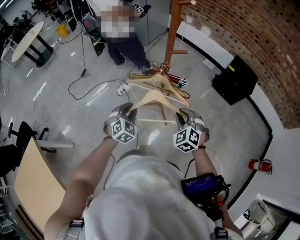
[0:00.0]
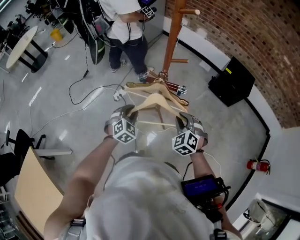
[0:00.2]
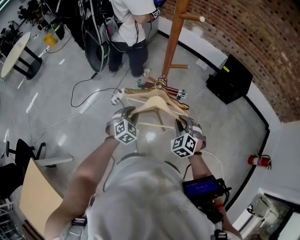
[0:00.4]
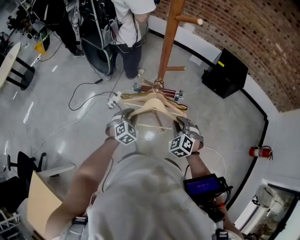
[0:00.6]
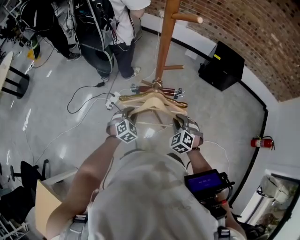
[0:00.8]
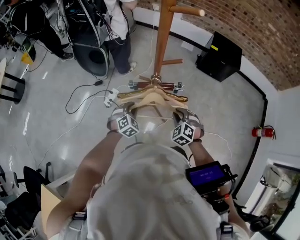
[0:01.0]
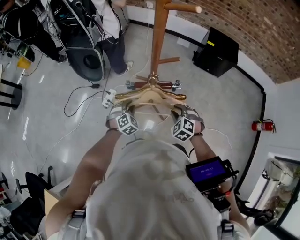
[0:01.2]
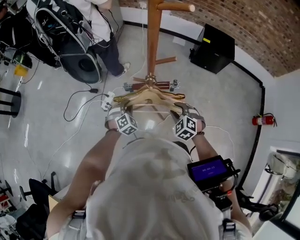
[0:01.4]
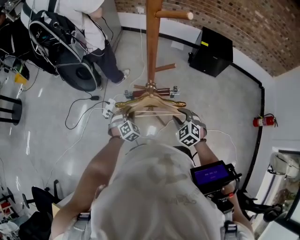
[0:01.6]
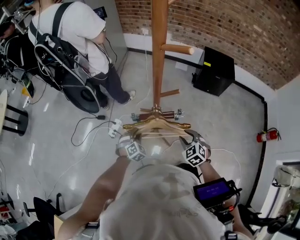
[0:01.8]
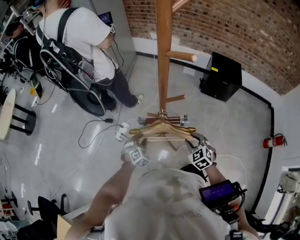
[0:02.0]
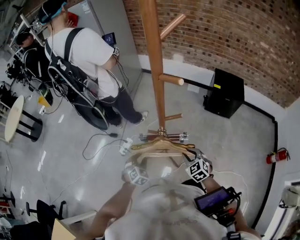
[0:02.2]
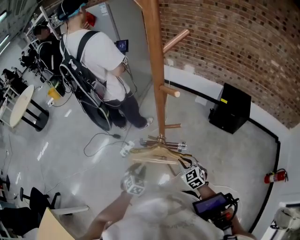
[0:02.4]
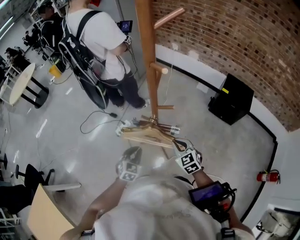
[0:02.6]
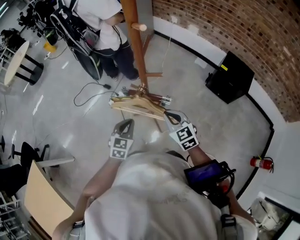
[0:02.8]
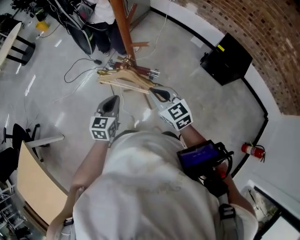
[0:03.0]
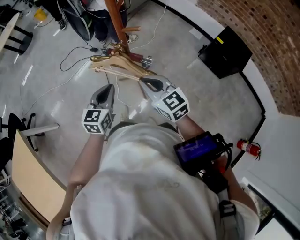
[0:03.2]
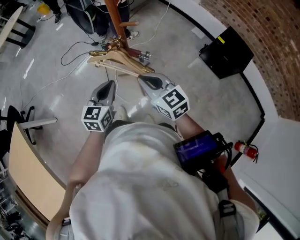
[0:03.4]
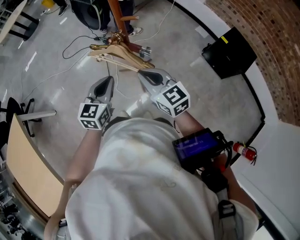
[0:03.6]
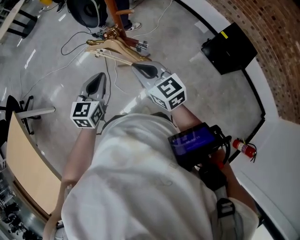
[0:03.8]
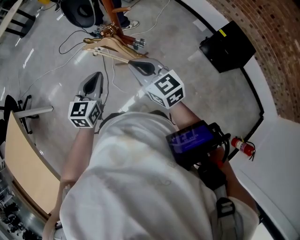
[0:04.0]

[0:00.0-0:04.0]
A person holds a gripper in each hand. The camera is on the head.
0.0 to 1.4 s: The right gripper shifts some 15 cm forward and downward. Meanwhile the left gripper travels forward and downward by some 20 cm, and changes its angle by roughly 30 degrees.
1.4 to 2.6 s: The right gripper moves upward, about 5 cm, turns by about 30 degrees, and closes its fingers; the left gripper travels upward and backward by roughly 15 cm, and turns by about 40 degrees.
2.6 to 4.0 s: The left gripper heads backward and upward, covering about 15 cm, and rotates approximately 30 degrees, while the right gripper shifts about 10 cm upward and backward, and turns by approximately 30 degrees.

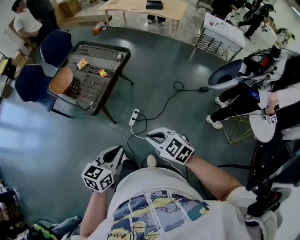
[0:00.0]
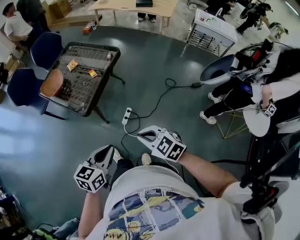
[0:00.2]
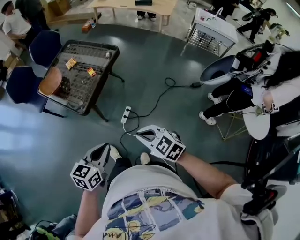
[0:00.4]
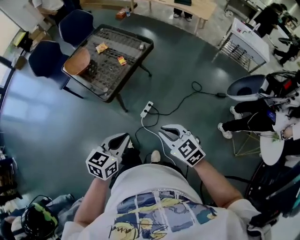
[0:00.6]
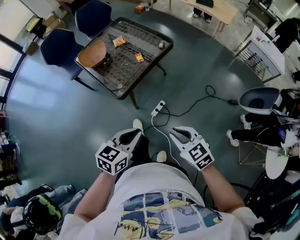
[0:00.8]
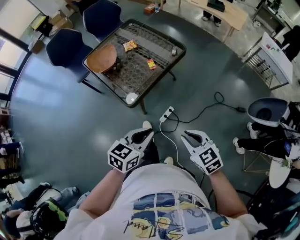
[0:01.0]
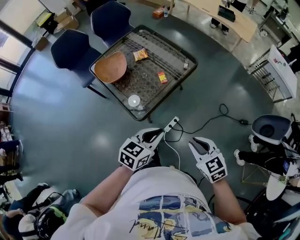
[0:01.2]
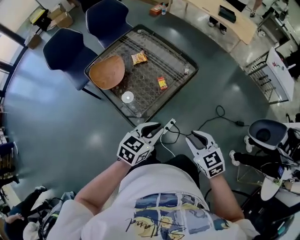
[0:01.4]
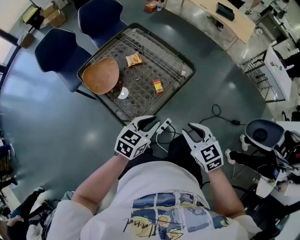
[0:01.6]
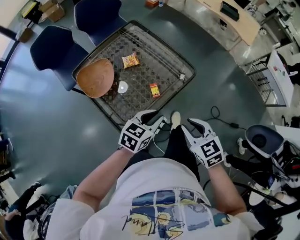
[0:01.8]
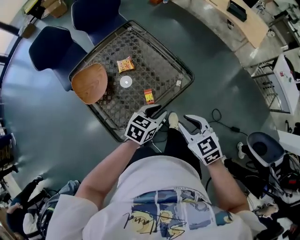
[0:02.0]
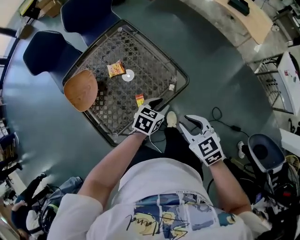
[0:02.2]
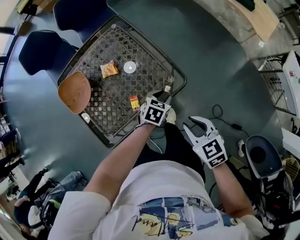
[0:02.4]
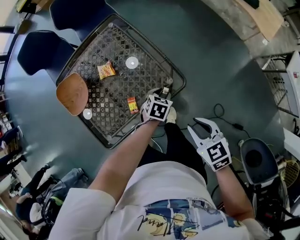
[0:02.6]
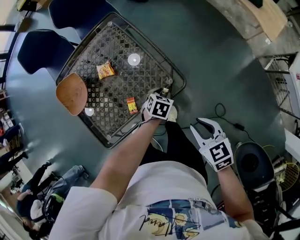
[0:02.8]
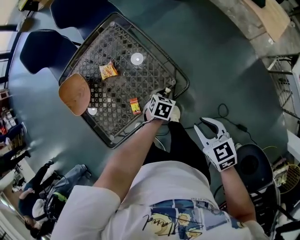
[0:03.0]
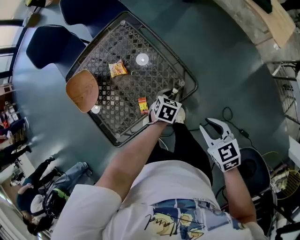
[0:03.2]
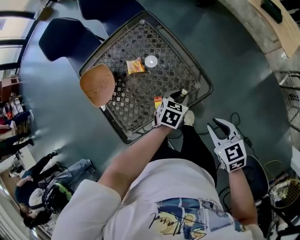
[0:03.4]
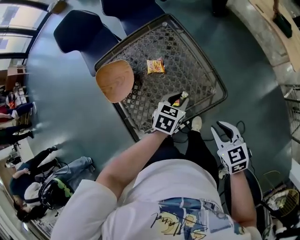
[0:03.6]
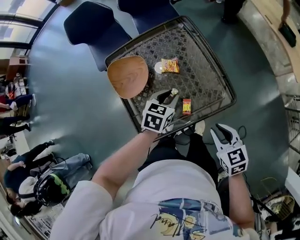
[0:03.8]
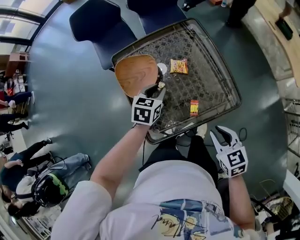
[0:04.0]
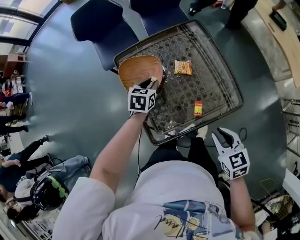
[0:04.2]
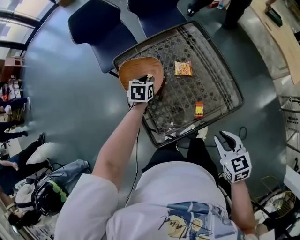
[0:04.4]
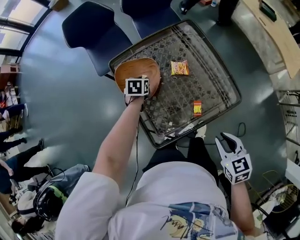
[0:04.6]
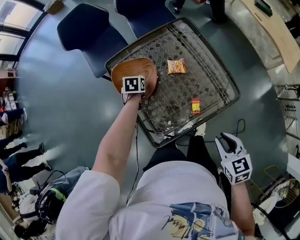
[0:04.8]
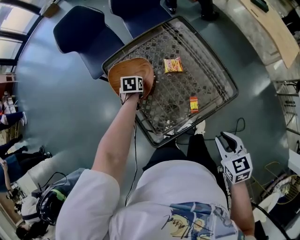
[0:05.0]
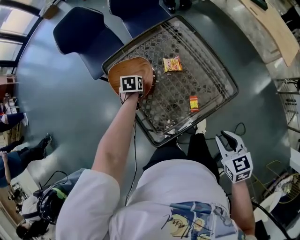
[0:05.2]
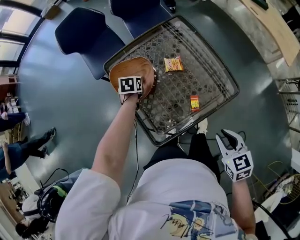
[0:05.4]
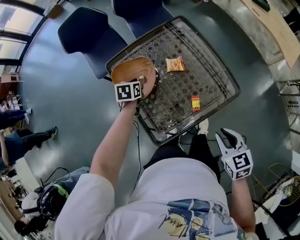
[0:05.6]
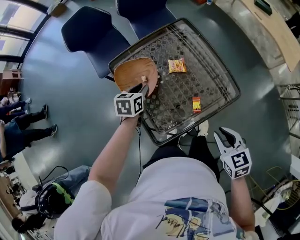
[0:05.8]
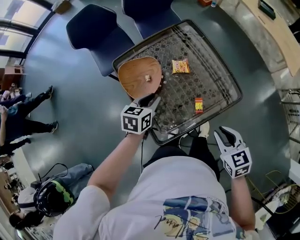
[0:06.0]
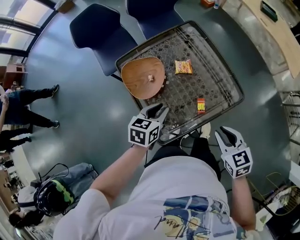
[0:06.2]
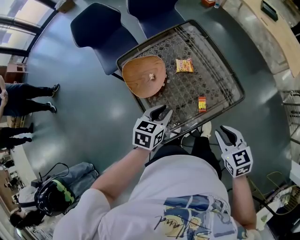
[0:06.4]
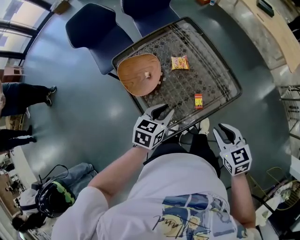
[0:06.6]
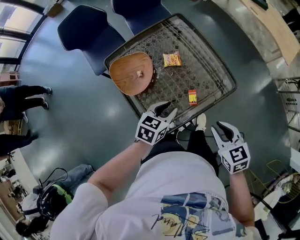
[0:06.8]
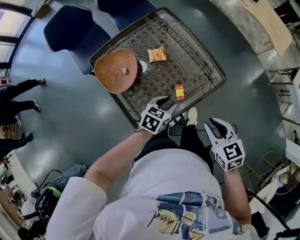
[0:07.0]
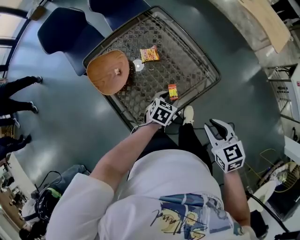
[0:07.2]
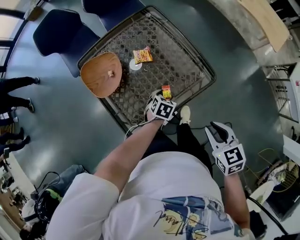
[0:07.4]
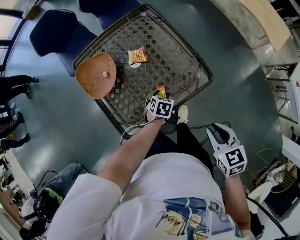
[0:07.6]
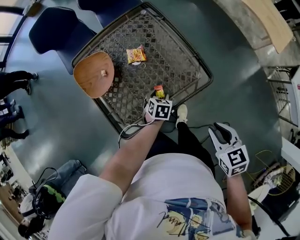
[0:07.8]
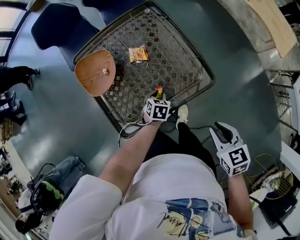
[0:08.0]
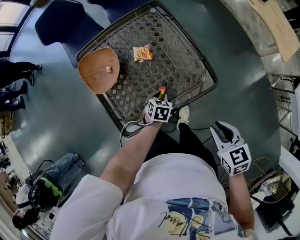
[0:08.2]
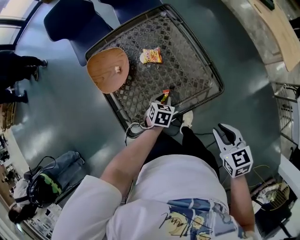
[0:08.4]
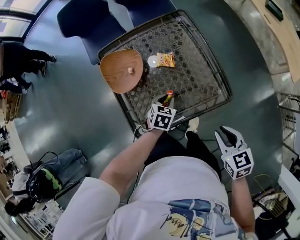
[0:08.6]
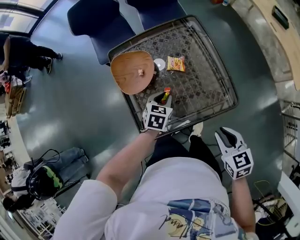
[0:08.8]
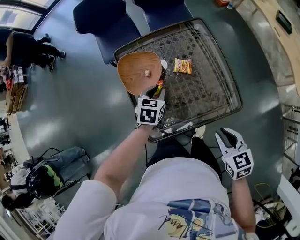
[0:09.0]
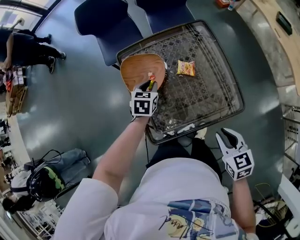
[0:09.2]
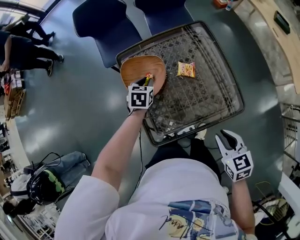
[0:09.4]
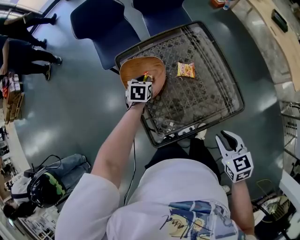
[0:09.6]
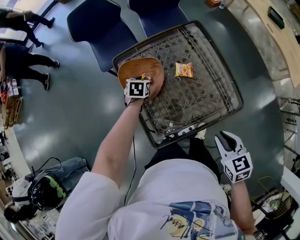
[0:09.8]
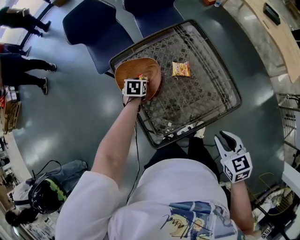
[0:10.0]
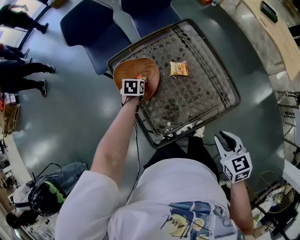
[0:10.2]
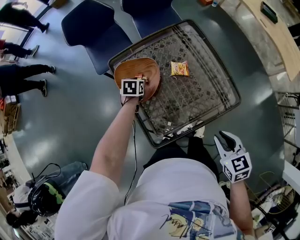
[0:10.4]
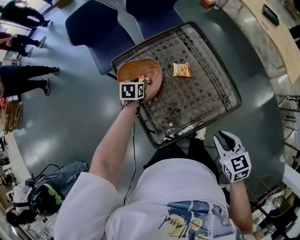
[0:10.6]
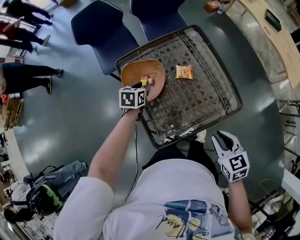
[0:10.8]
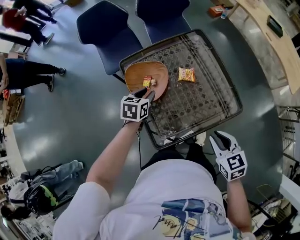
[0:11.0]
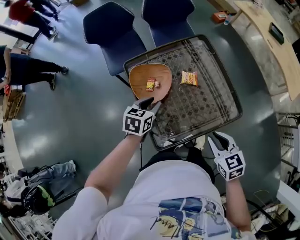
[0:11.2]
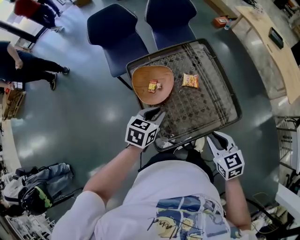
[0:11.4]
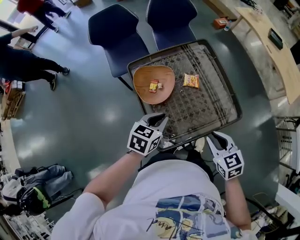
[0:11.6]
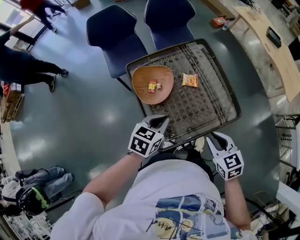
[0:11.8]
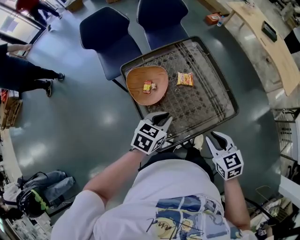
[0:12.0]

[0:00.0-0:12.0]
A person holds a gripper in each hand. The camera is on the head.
0.0 to 1.6 s: Both grippers travel together forward, roughly 40 cm.
1.6 to 3.0 s: The right gripper goes roughly 30 cm forward and to the right. The left gripper heads forward, downward and to the right, covering approximately 40 cm, and points its fingers about 30 degrees further downward.
3.0 to 4.4 s: The left gripper is displaced to the left by about 40 cm, and swivels roughly 30 degrees. The right gripper travels to the left by about 25 cm.
4.4 to 6.0 s: The left gripper is displaced backward and upward by about 15 cm.
6.0 to 7.6 s: The left gripper shifts roughly 30 cm to the right and downward, changes its angle by approximately 20 degrees, and opens its fingers; the right gripper moves to the right, about 15 cm.
7.6 to 9.0 s: The right gripper goes about 15 cm to the left and forward; the left gripper moves to the left, upward and forward, roughly 25 cm, rotates approximately 20 degrees, and closes.
9.0 to 10.4 s: The left gripper goes approximately 15 cm forward, to the left and downward.
10.4 to 12.0 s: The right gripper shifts some 5 cm to the left. Meanwhile the left gripper heads upward, backward and to the right, covering approximately 30 cm, and swivels about 30 degrees.

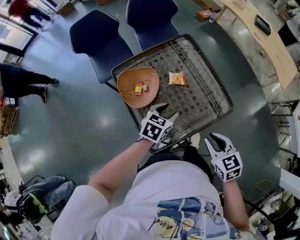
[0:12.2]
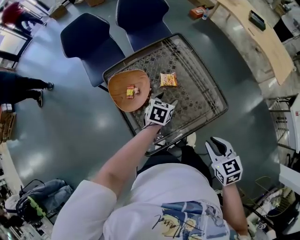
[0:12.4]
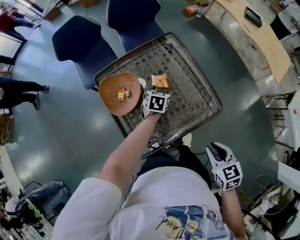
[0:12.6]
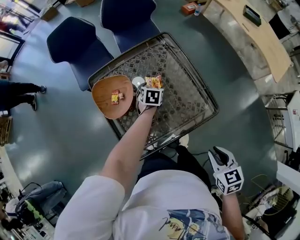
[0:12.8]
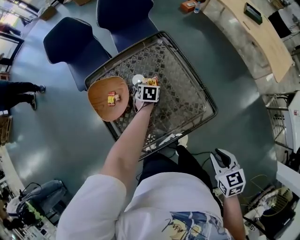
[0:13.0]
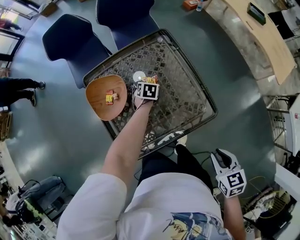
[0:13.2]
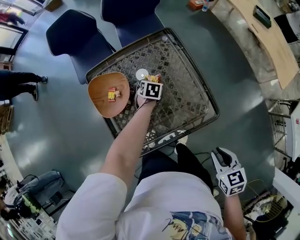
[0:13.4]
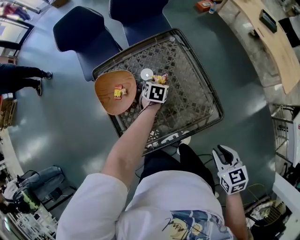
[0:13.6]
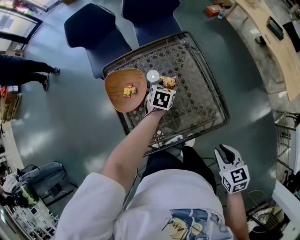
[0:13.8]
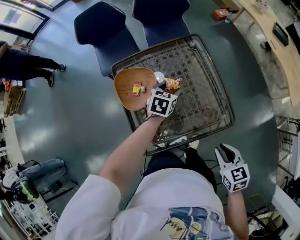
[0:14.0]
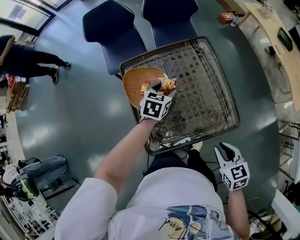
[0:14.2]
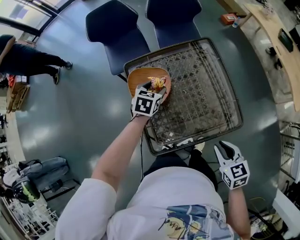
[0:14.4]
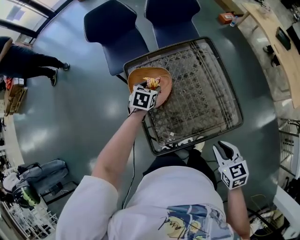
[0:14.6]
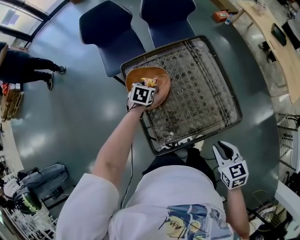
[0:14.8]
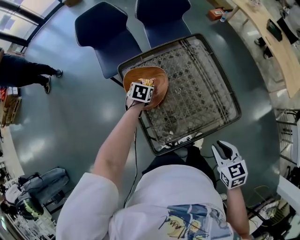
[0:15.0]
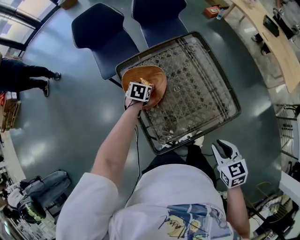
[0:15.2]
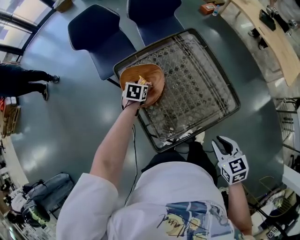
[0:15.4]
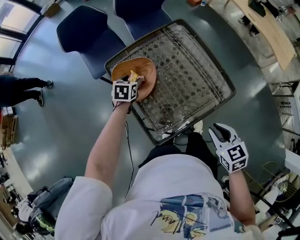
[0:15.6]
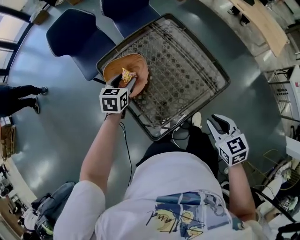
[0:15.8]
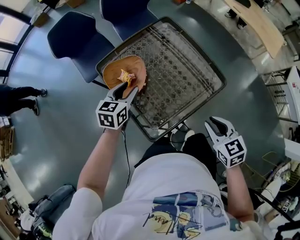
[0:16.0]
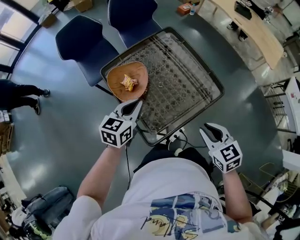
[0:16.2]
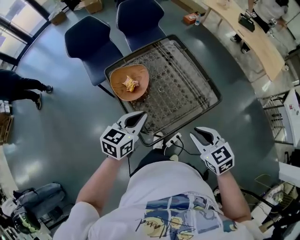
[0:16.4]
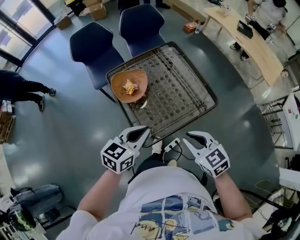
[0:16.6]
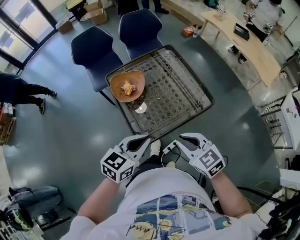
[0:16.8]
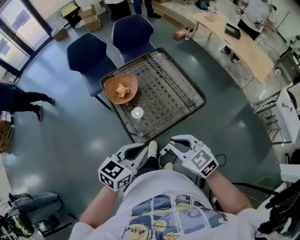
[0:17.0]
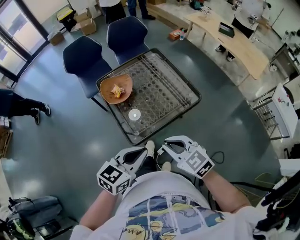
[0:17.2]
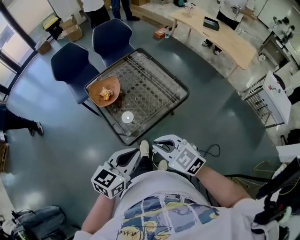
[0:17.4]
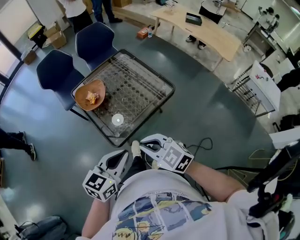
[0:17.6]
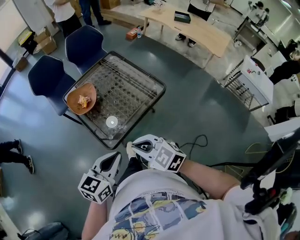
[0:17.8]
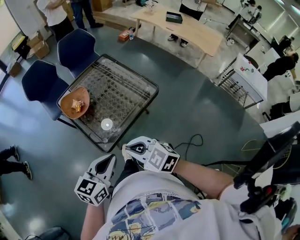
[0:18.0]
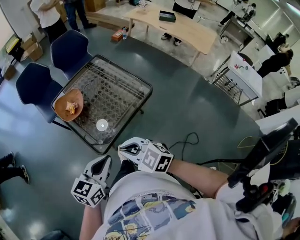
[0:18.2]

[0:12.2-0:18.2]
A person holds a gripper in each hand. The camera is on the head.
12.2 to 13.8 s: The right gripper heads to the right, covering approximately 10 cm, while the left gripper is displaced forward and downward by some 20 cm.
13.8 to 15.2 s: The right gripper moves to the left, approximately 10 cm. The left gripper goes some 20 cm to the left.
15.2 to 16.6 s: The left gripper shifts about 40 cm backward, upward and to the right, tips its fingers upward by roughly 40 degrees, and closes up. Meanwhile the right gripper shifts some 10 cm upward, backward and to the left.
16.6 to 18.2 s: The two grippers go about 10 cm backward.

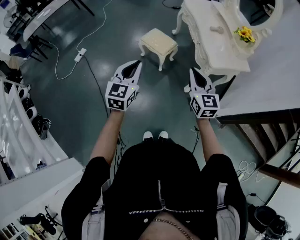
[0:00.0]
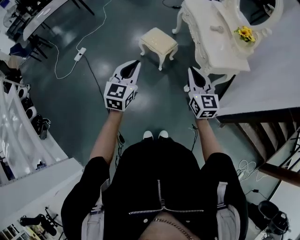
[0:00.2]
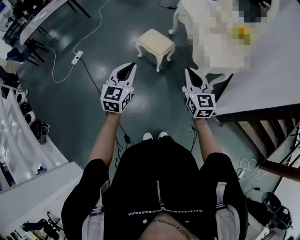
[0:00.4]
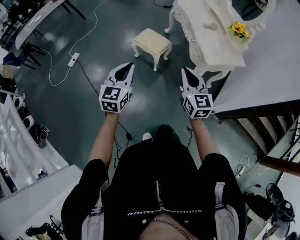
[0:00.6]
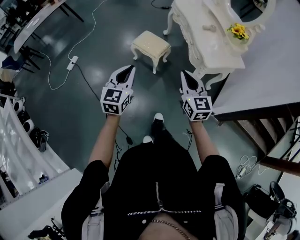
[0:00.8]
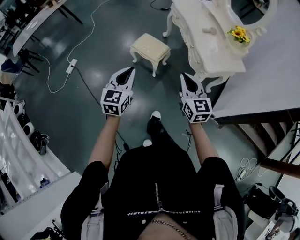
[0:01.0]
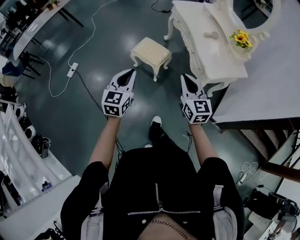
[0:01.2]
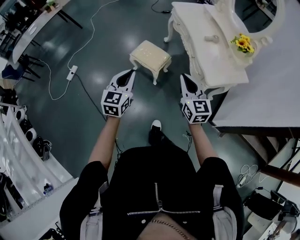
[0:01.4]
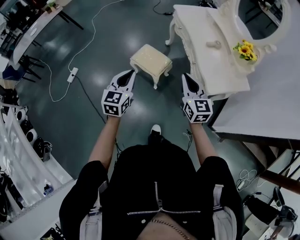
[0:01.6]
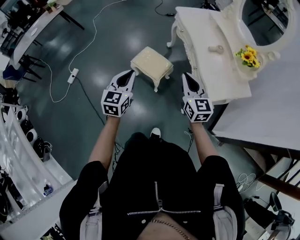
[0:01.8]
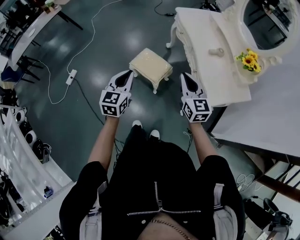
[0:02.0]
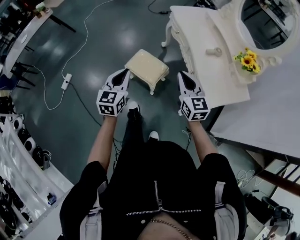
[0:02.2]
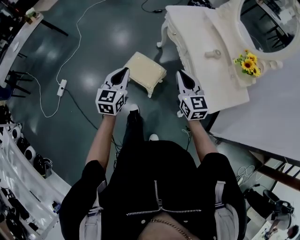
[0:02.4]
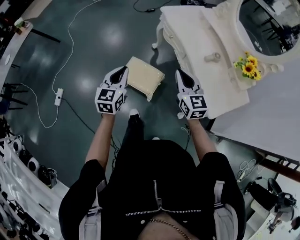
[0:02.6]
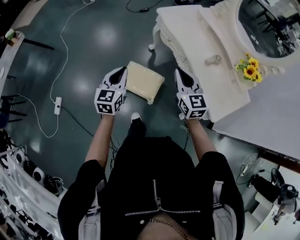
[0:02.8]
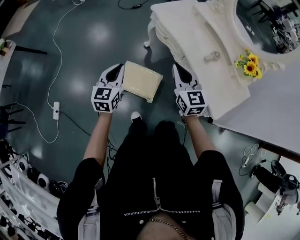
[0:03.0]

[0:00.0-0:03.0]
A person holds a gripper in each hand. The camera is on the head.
0.0 to 1.6 s: Both grippers move forward, some 20 cm.
1.6 to 3.0 s: The two grippers go approximately 35 cm forward.
